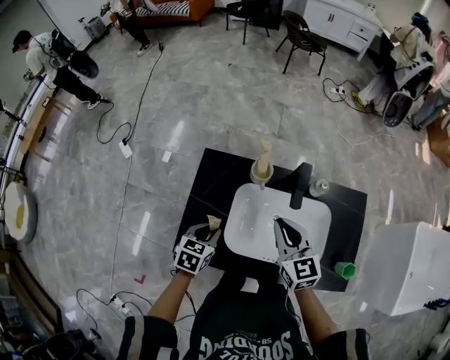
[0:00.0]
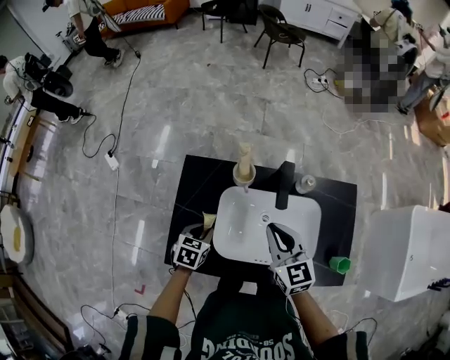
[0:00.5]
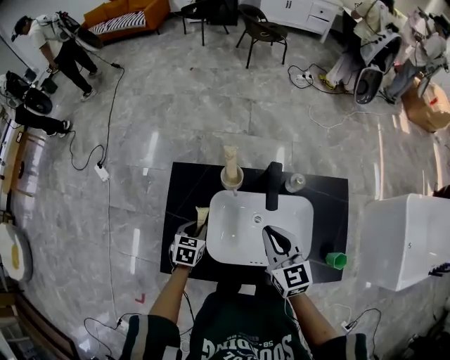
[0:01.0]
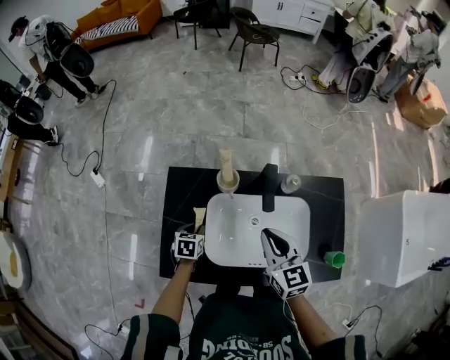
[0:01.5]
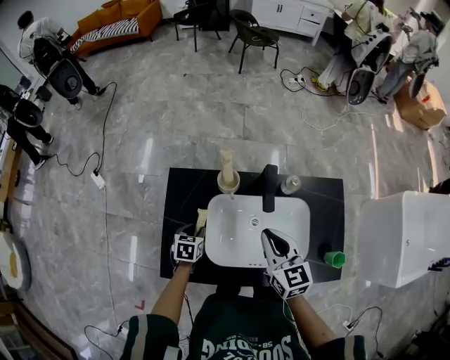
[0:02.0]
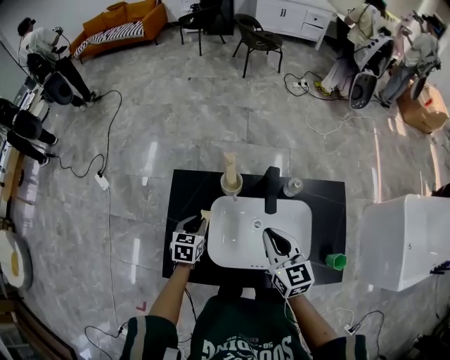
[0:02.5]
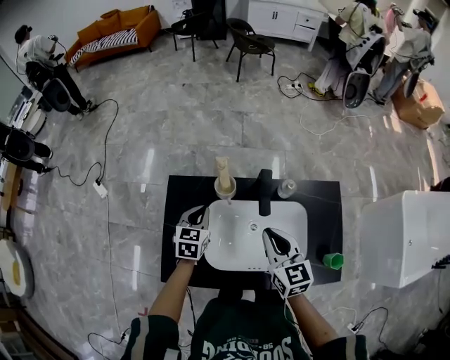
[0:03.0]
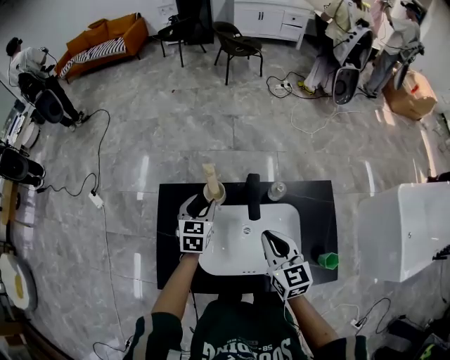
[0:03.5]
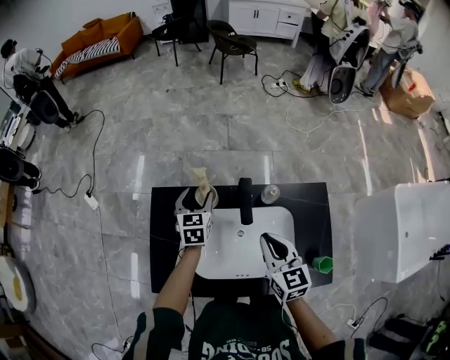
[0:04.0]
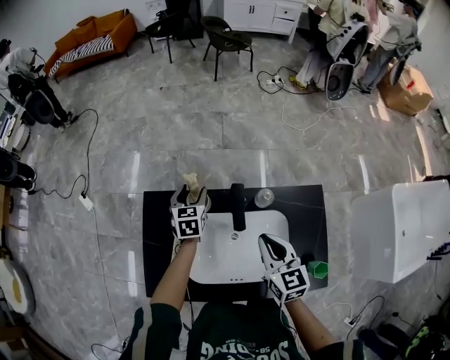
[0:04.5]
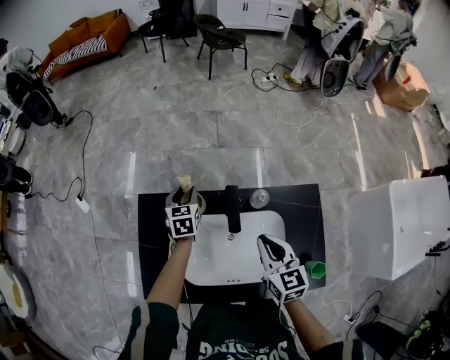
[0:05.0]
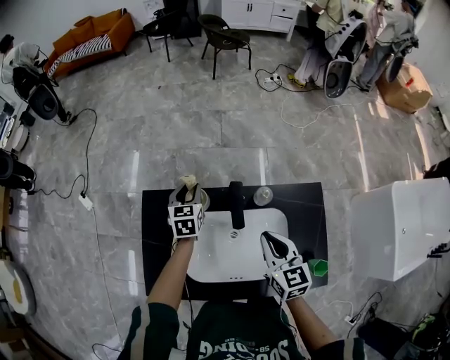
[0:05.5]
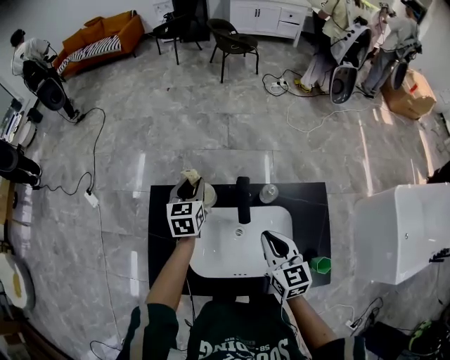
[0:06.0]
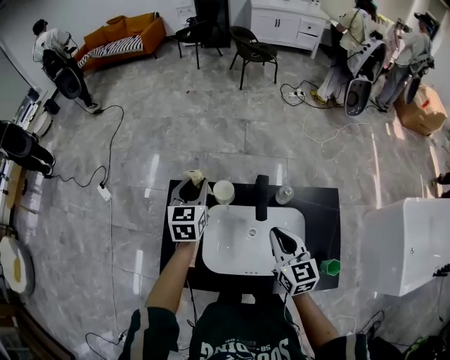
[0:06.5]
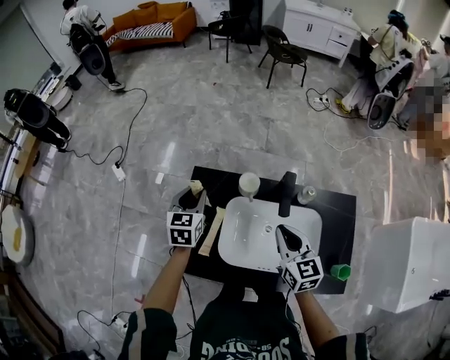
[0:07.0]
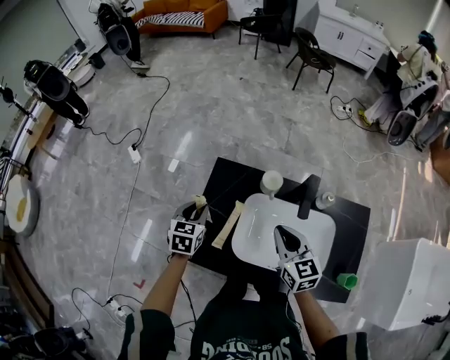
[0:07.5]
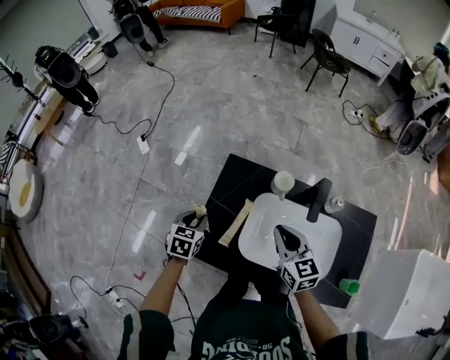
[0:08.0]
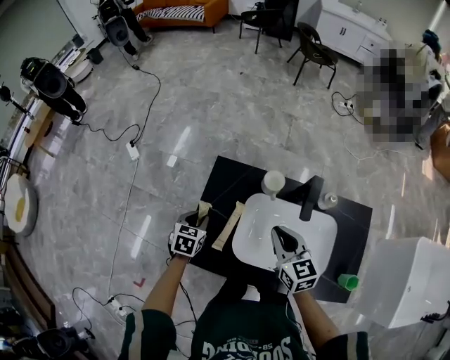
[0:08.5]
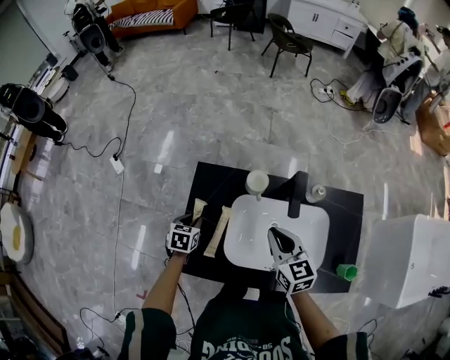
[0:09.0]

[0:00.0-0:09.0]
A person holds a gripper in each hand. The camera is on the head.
0:00.0 to 0:02.0: The left gripper heads downward and forward, covering roughly 15 cm.
0:02.0 to 0:04.5: The left gripper heads forward, upward and to the right, covering roughly 30 cm, changes its angle by some 20 degrees, and opens its fingers; the right gripper goes approximately 10 cm to the right.
0:04.5 to 0:07.0: The left gripper goes some 25 cm to the left, backward and upward, and closes its fingers. The right gripper is displaced to the left by some 10 cm.
0:07.0 to 0:09.0: The right gripper shifts roughly 5 cm to the left, while the left gripper goes about 20 cm downward, and swivels some 30 degrees.

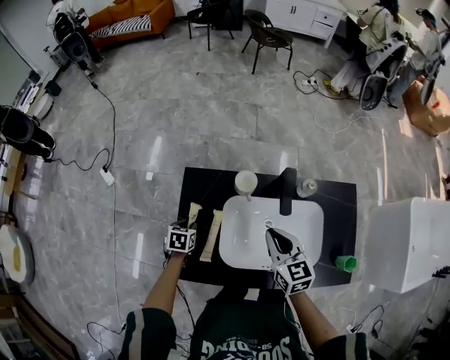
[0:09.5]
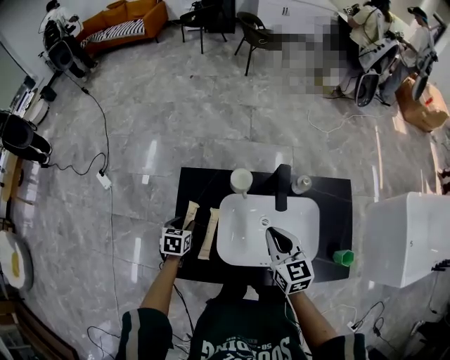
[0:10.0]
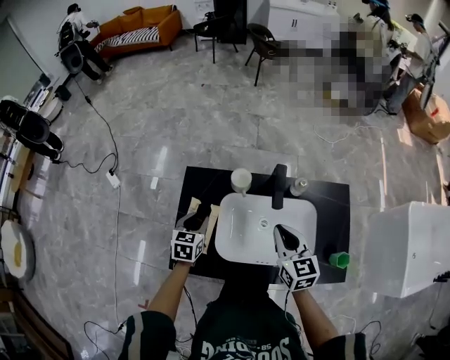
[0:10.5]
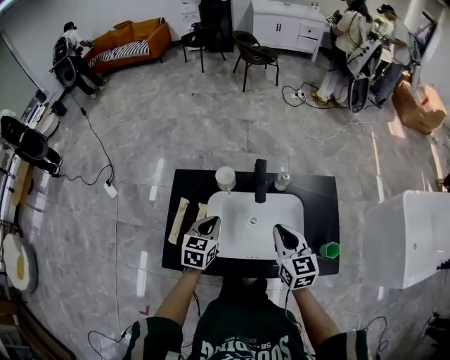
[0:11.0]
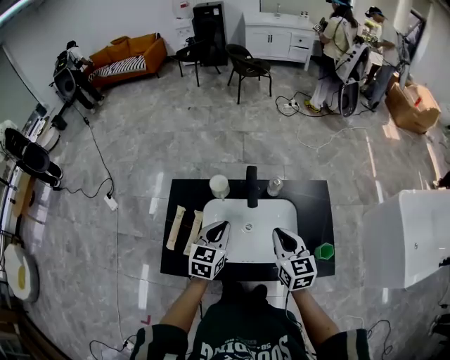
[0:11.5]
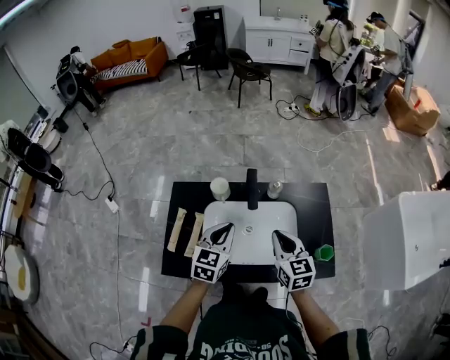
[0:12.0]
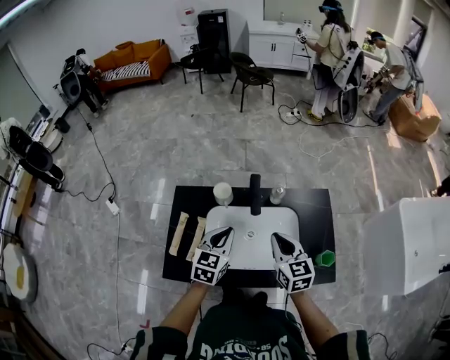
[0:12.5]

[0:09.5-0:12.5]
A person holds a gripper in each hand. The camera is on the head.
0:09.5 to 0:11.0: The left gripper moves to the right and upward, approximately 25 cm, swivels roughly 30 degrees, and closes its fingers. The right gripper heads to the right, backward and upward, covering some 15 cm.
0:11.0 to 0:12.5: The left gripper is displaced upward and to the right by about 10 cm.

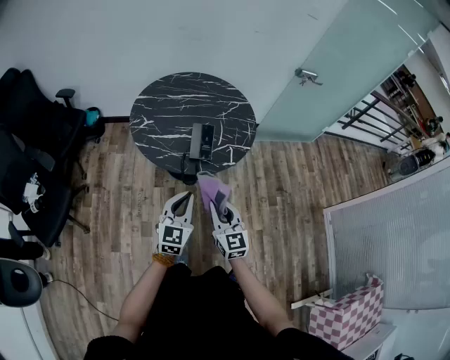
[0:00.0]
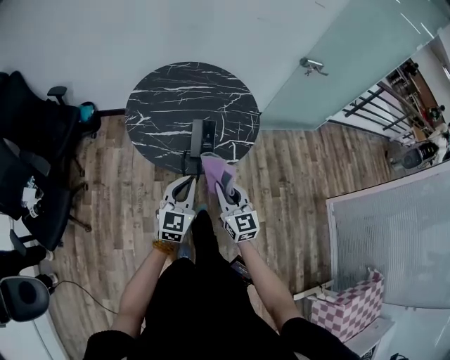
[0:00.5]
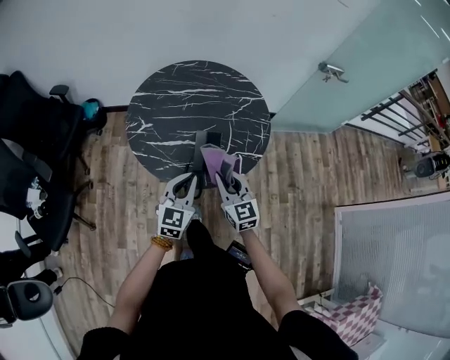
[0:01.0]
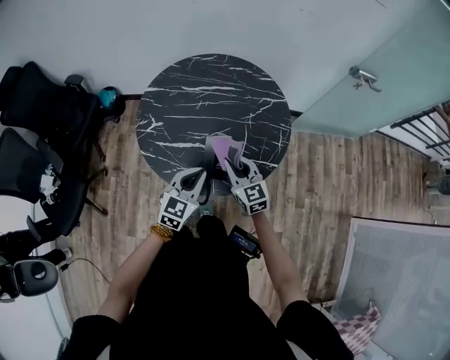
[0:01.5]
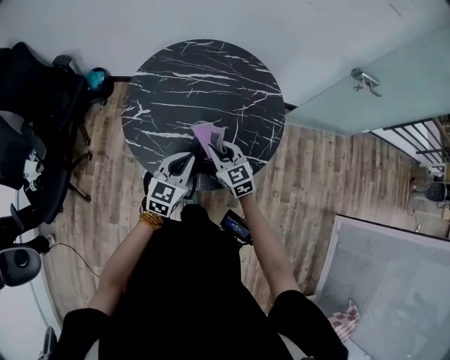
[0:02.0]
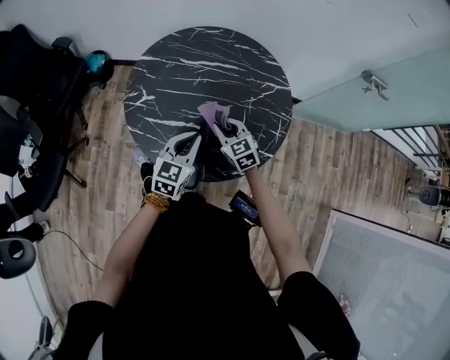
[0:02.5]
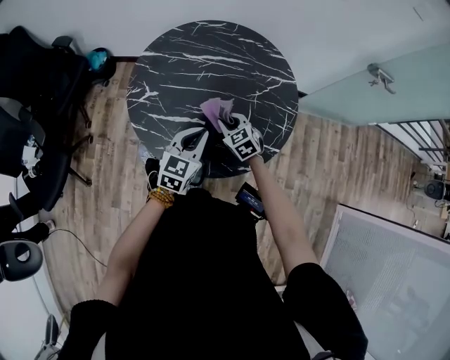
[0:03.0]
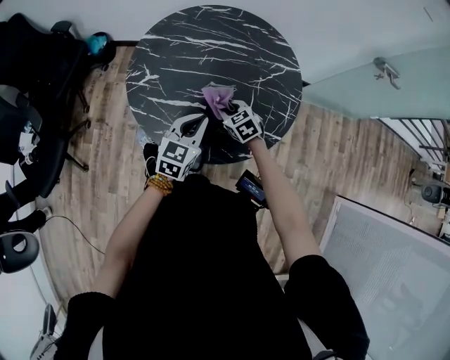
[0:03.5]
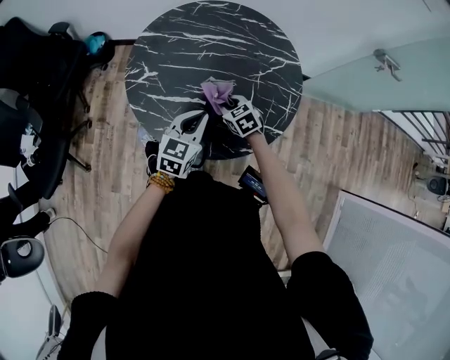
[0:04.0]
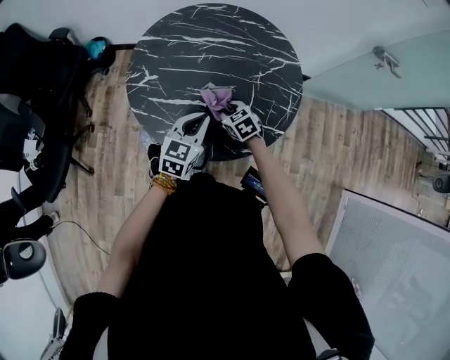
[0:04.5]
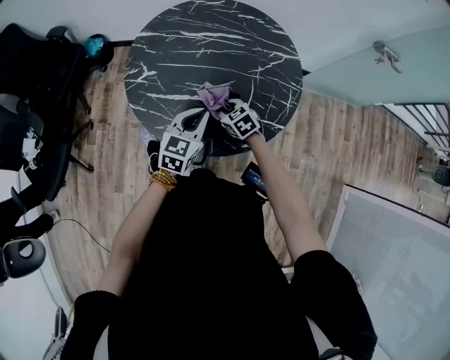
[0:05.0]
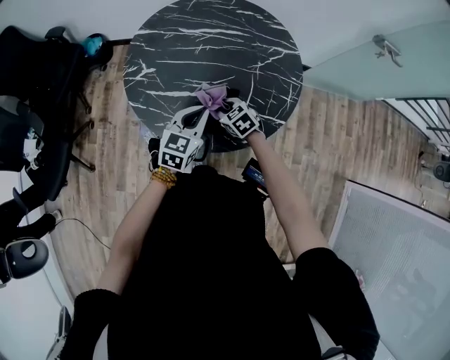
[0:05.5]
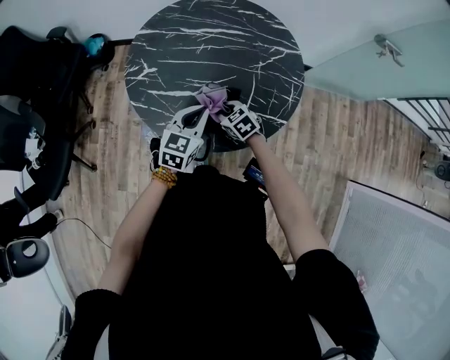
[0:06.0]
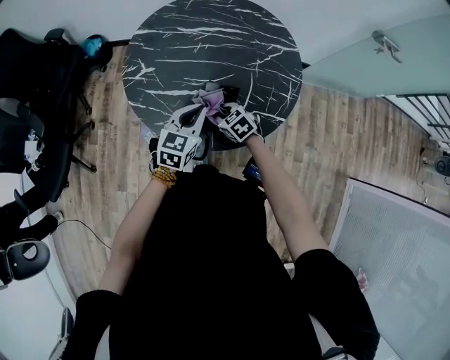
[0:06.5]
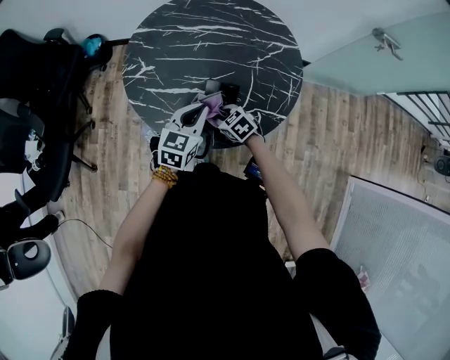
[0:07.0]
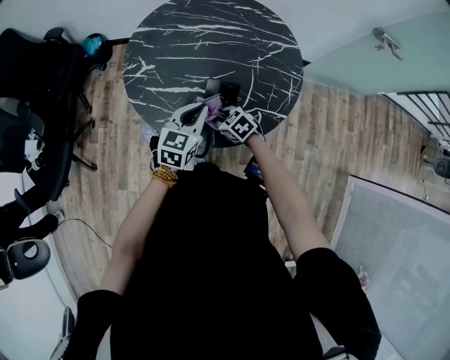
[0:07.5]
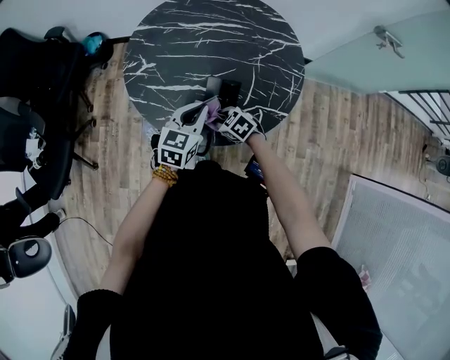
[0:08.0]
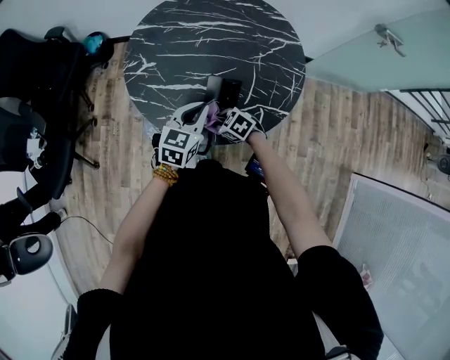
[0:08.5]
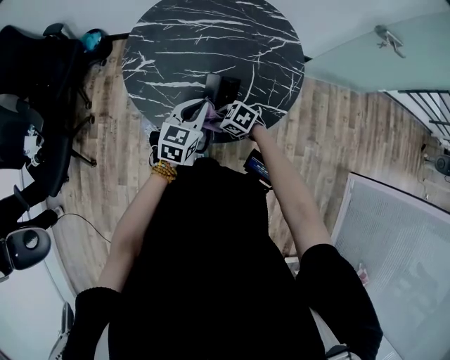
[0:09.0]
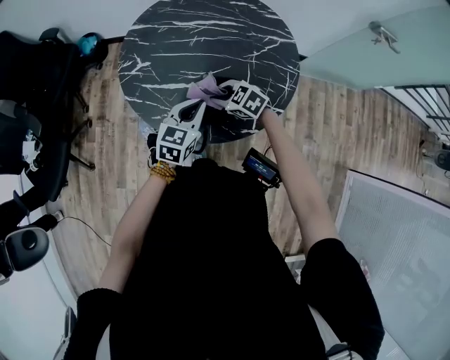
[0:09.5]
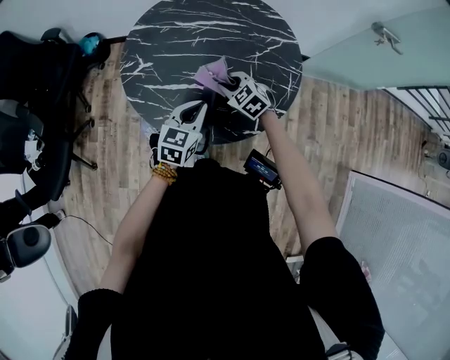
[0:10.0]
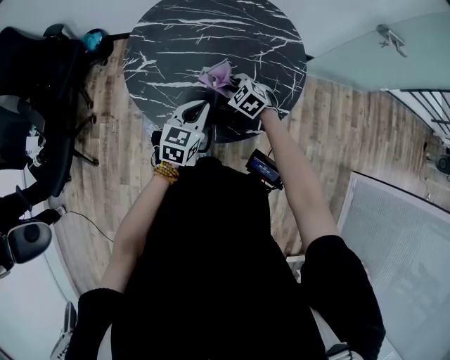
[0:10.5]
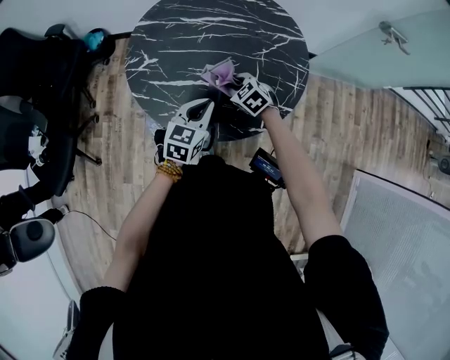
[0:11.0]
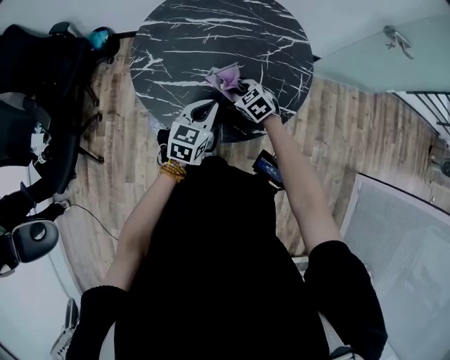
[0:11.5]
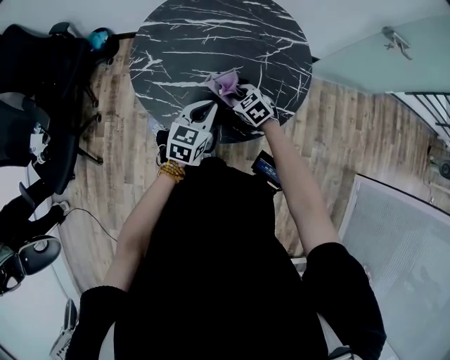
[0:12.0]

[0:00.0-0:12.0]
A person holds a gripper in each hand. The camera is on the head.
0:00.0 to 0:02.0: The grippers both shift forward by approximately 35 cm. The right gripper swivels approximately 30 degrees.
0:02.0 to 0:04.0: The right gripper heads downward and forward, covering approximately 15 cm, and changes its angle by some 20 degrees.
0:04.0 to 0:06.0: The right gripper shifts roughly 5 cm backward.
0:06.0 to 0:08.0: The right gripper goes about 5 cm backward.
0:08.0 to 0:10.0: The right gripper shifts by roughly 15 cm, and swivels some 20 degrees.
0:10.0 to 0:12.0: The right gripper travels downward by about 5 cm.

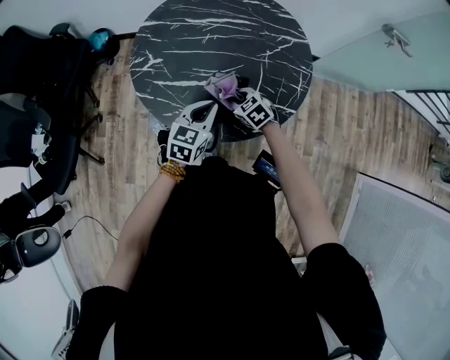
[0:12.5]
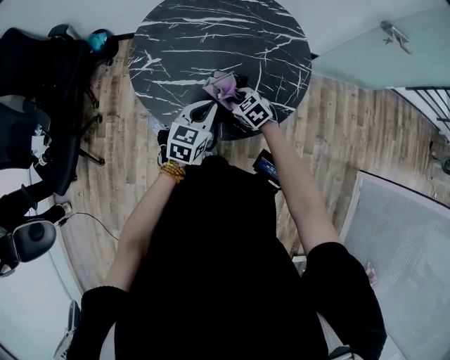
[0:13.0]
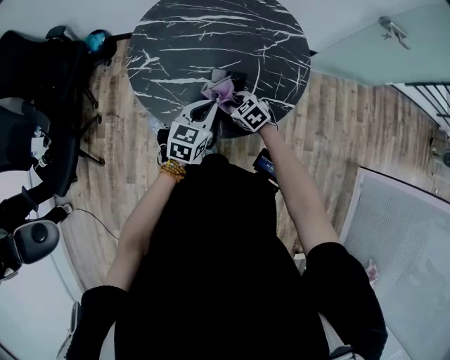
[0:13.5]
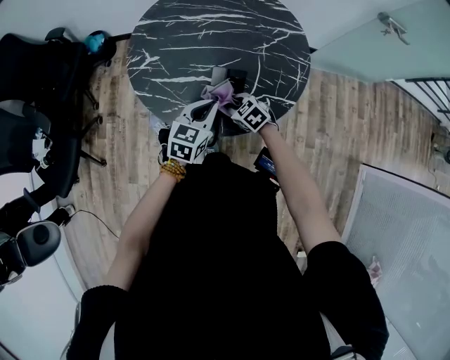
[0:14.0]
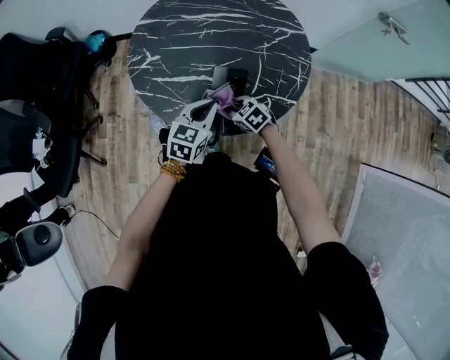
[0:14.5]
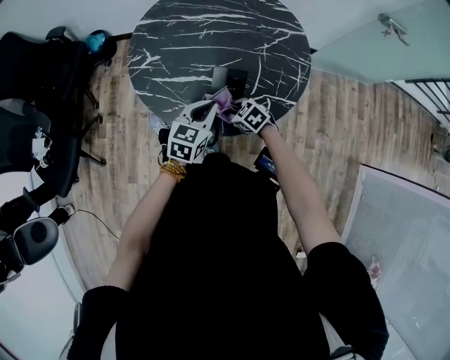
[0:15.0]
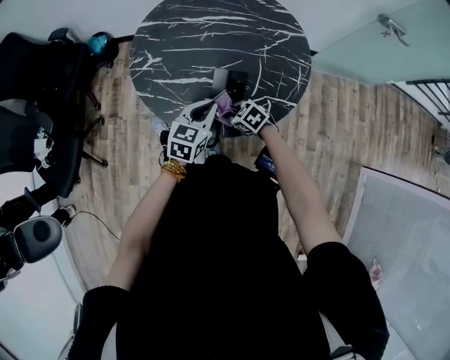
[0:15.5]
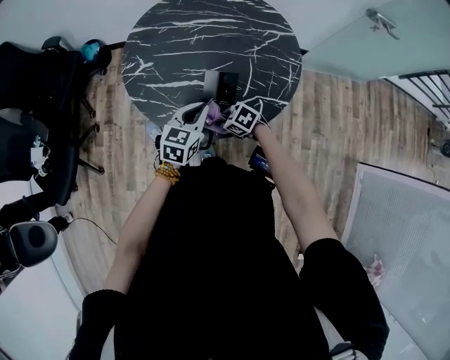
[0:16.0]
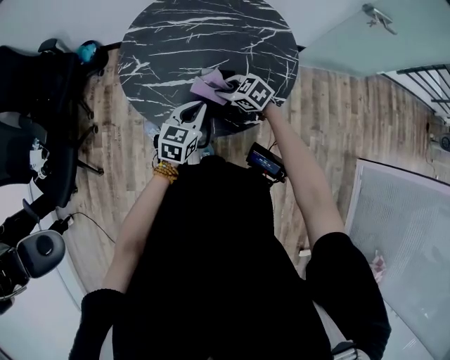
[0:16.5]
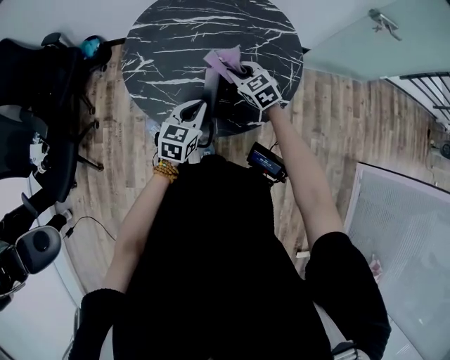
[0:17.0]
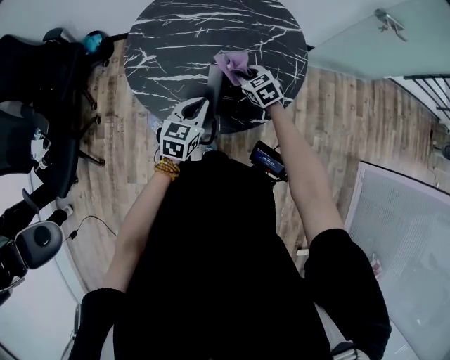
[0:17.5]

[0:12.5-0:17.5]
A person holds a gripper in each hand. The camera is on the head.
0:12.5 to 0:15.0: The right gripper goes approximately 5 cm backward.
0:15.0 to 0:17.5: The right gripper travels forward, to the right and upward by about 15 cm, and turns by roughly 20 degrees.
